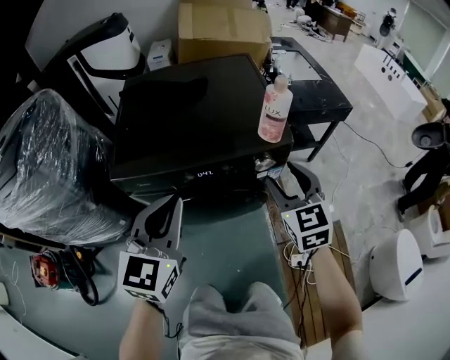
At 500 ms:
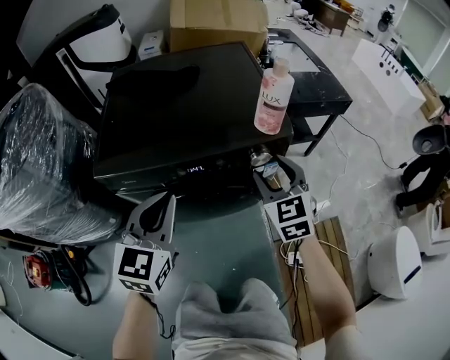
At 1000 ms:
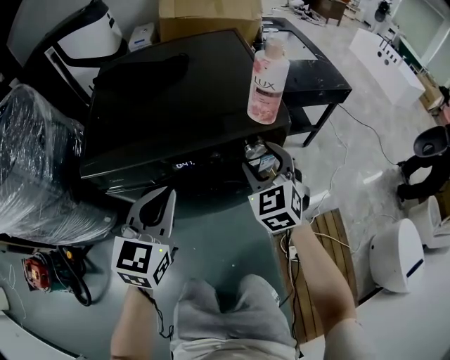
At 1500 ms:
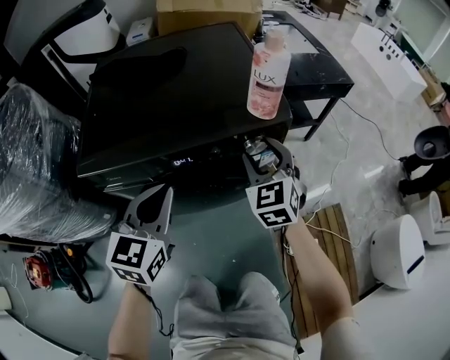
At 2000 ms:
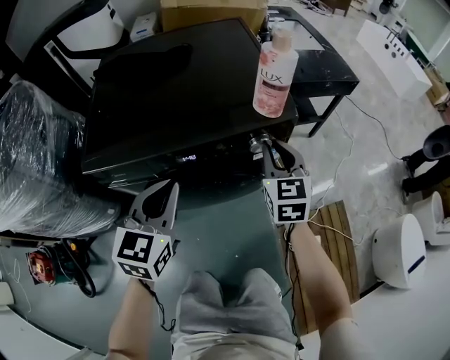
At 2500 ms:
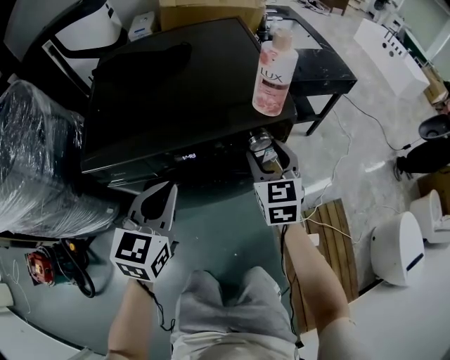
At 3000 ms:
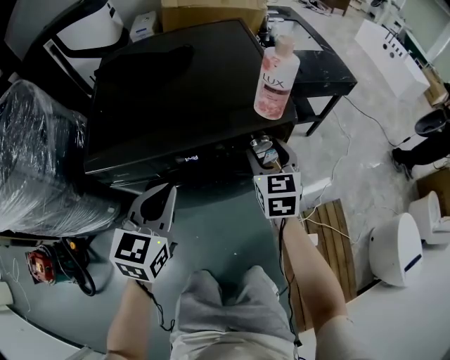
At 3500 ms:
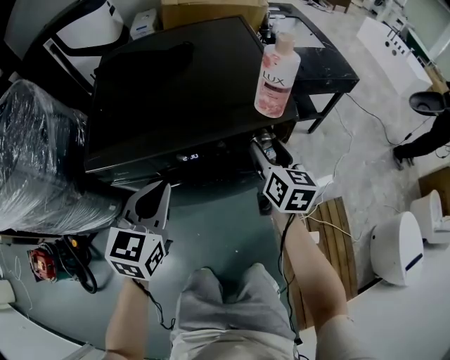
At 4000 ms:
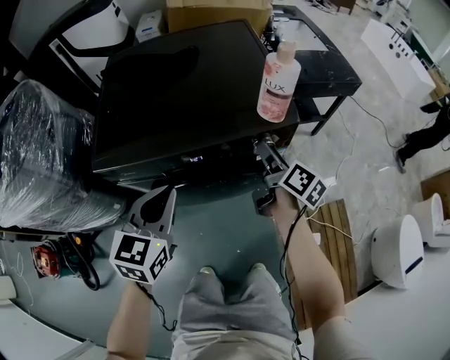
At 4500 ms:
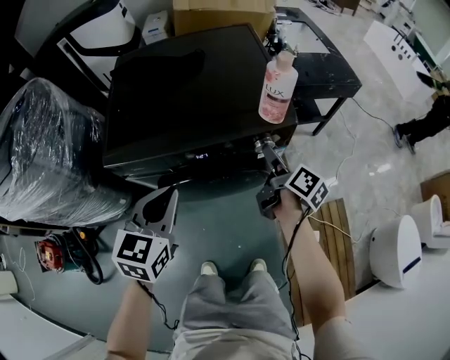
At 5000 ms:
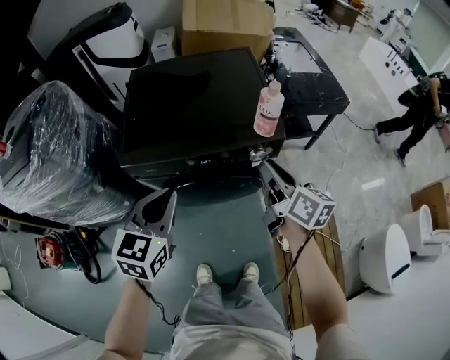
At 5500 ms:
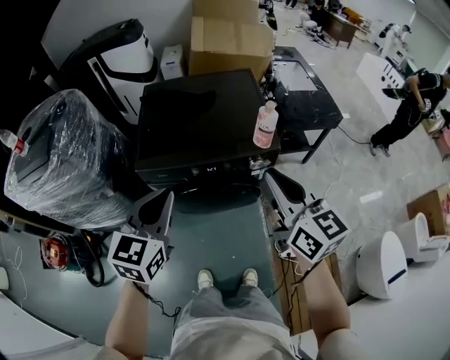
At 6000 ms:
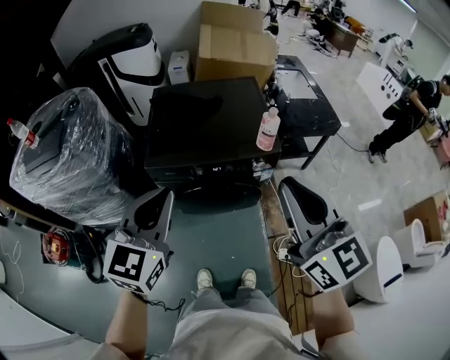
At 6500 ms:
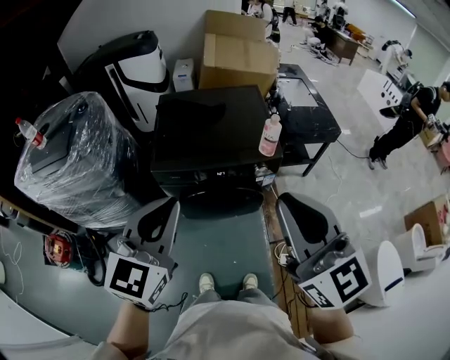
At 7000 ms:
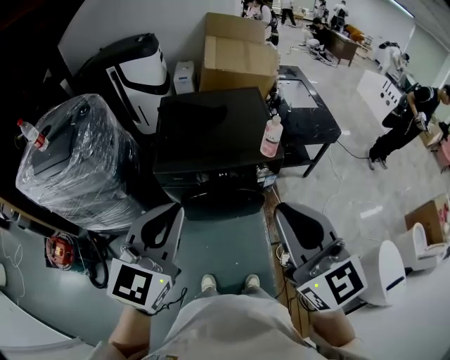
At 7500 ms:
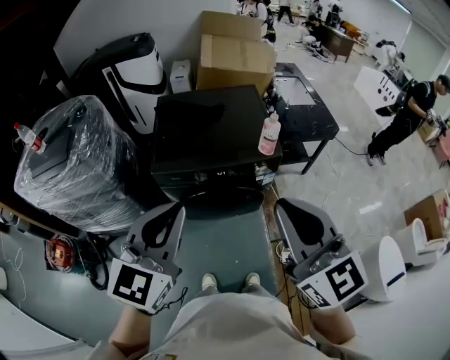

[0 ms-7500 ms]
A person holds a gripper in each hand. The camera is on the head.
0 ms to 2000 ms: The two grippers go roughly 15 cm downward and forward. The right gripper closes its fingers.
2000 ms to 4000 ms: The right gripper rotates around the line of its fingers by roughly 70 degrees, clockwise from behind, and opens its fingers.
4000 ms to 5500 ms: The left gripper goes about 25 cm upward and backward; the right gripper heads upward and backward, covering roughly 40 cm, rotates around the line of its fingers by approximately 50 degrees, counterclockwise from behind, and closes up.
5500 ms to 7500 ms: The left gripper goes about 15 cm upward and backward; the right gripper heads backward, upward and to the left, covering approximately 20 cm.

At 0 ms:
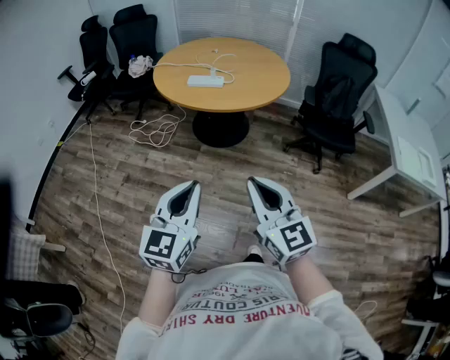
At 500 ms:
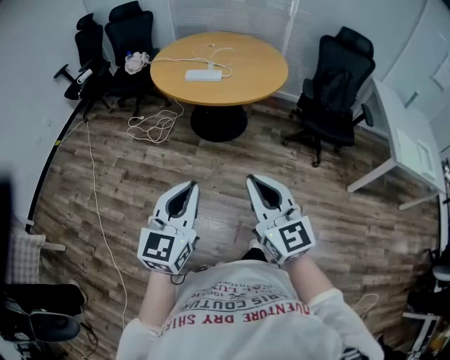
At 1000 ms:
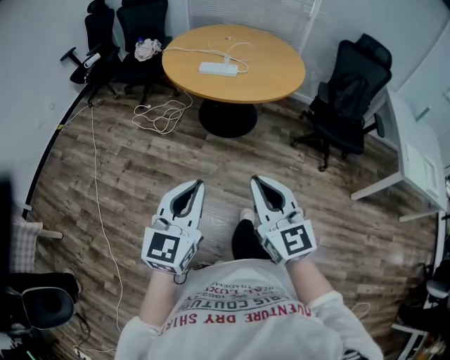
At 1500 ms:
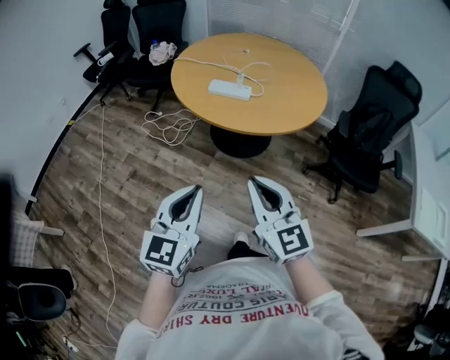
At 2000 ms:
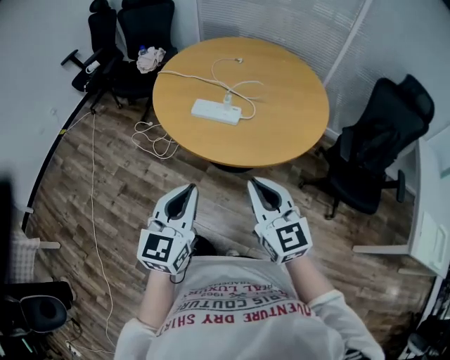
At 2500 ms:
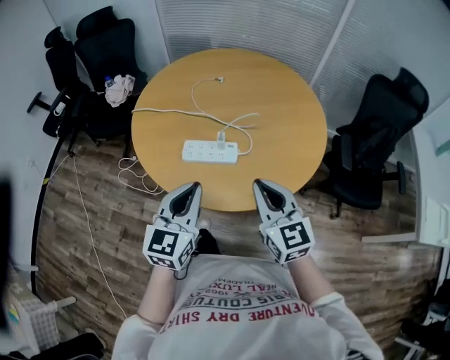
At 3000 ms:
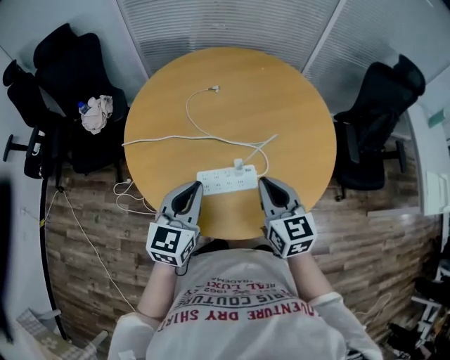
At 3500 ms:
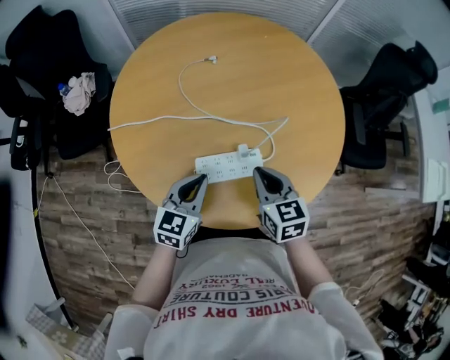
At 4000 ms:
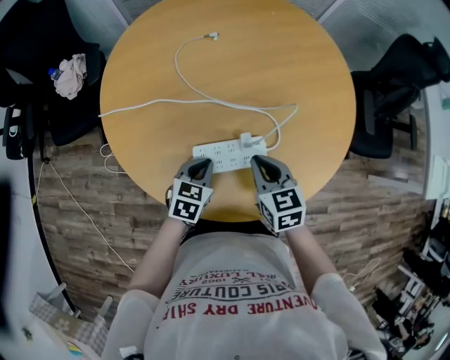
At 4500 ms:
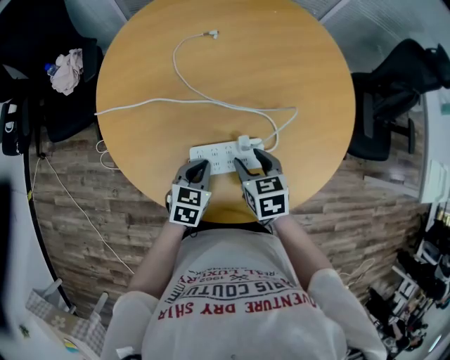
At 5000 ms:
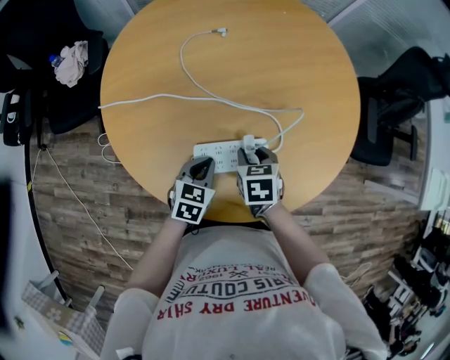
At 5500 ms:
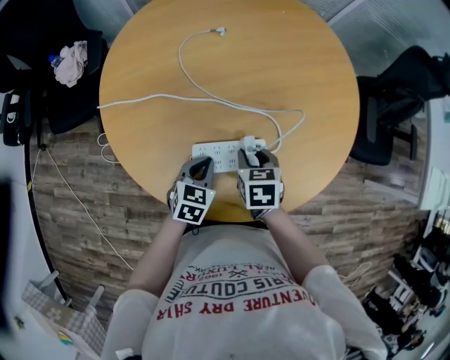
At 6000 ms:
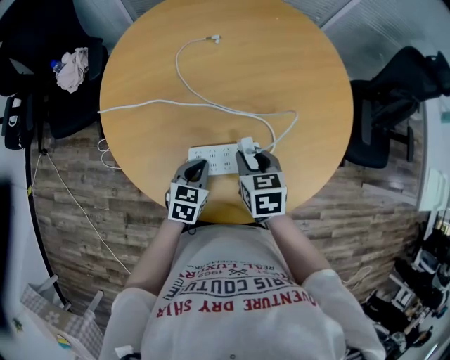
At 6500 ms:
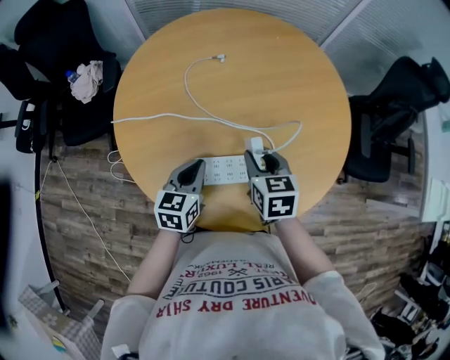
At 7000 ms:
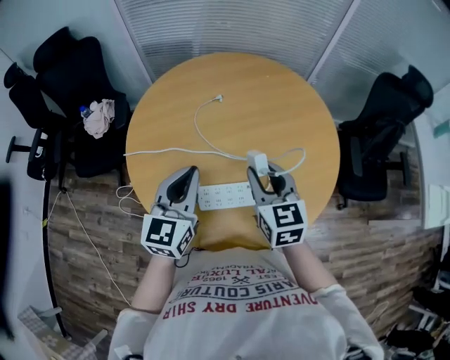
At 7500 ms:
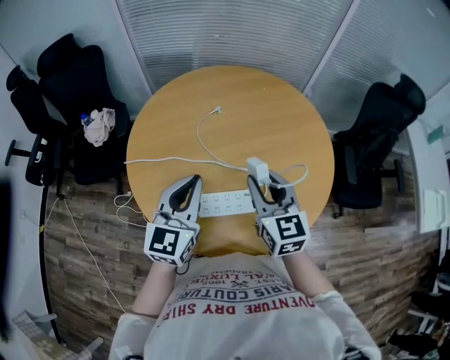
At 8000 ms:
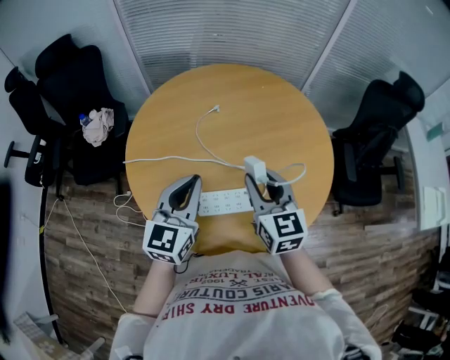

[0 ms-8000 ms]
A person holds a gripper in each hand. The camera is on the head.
0 ms to 2000 ms: The two grippers go some 40 cm forward.
2000 ms to 4000 ms: The left gripper ends up approximately 50 cm from where it was, and tips its fingers downward by about 40 degrees, while the right gripper shifts by approximately 40 cm, and tips its fingers downward by some 30 degrees.
4000 ms to 6000 ms: The right gripper opens its fingers.
6000 ms to 8000 ms: Both grippers travel together upward, some 25 cm. The left gripper tips its fingers upward by roughly 40 degrees. Meanwhile the right gripper points its fingers roughly 30 degrees further upward.

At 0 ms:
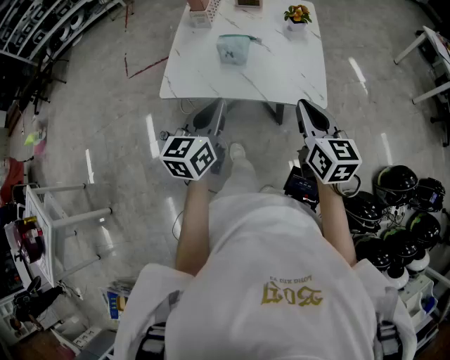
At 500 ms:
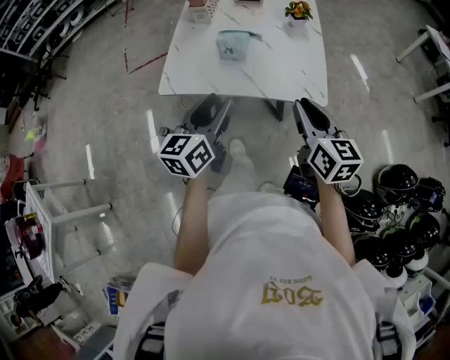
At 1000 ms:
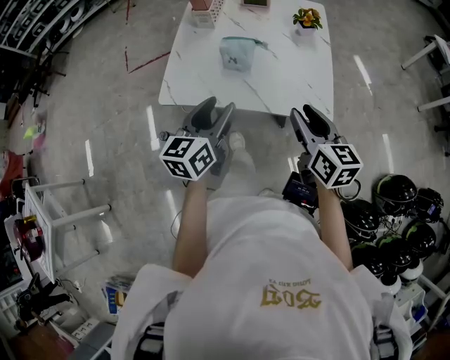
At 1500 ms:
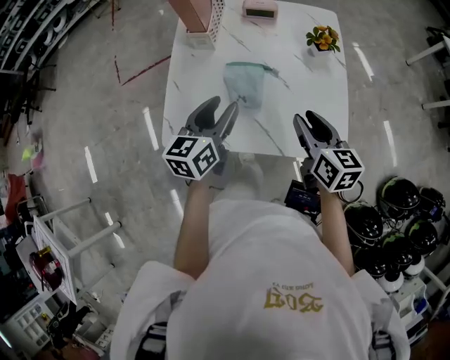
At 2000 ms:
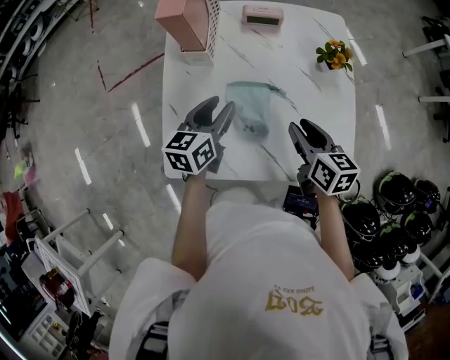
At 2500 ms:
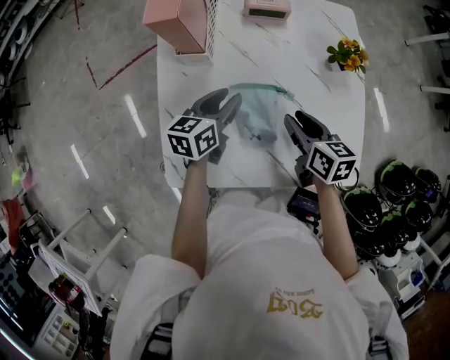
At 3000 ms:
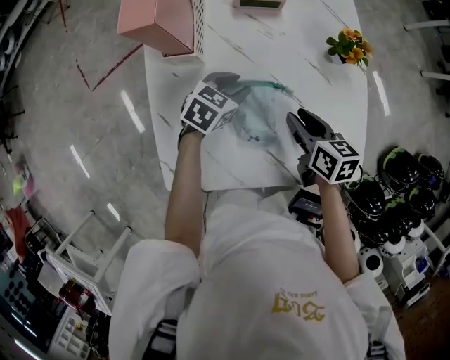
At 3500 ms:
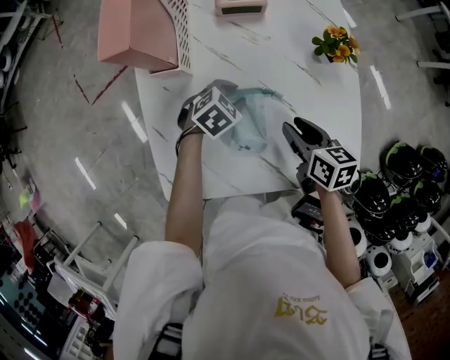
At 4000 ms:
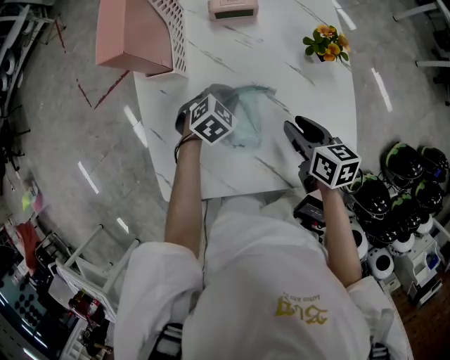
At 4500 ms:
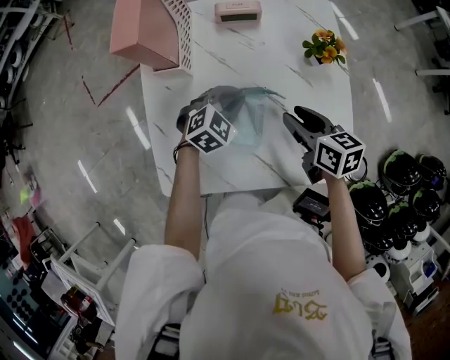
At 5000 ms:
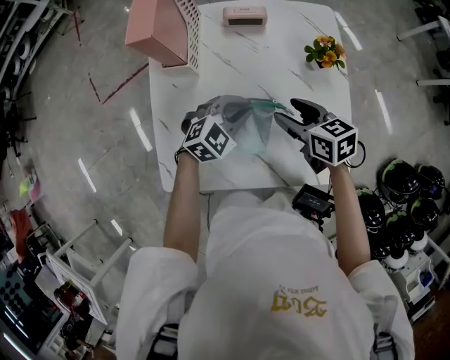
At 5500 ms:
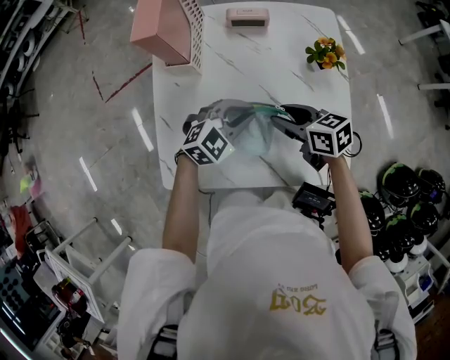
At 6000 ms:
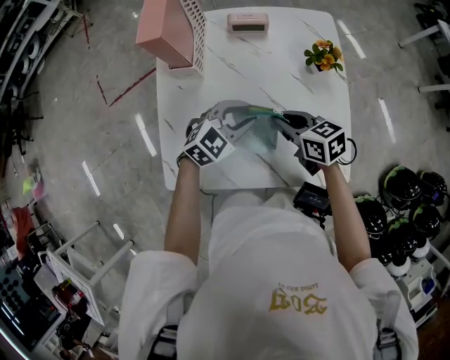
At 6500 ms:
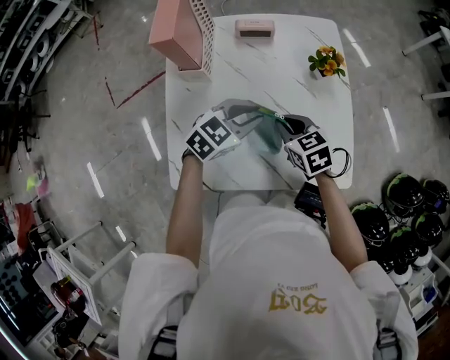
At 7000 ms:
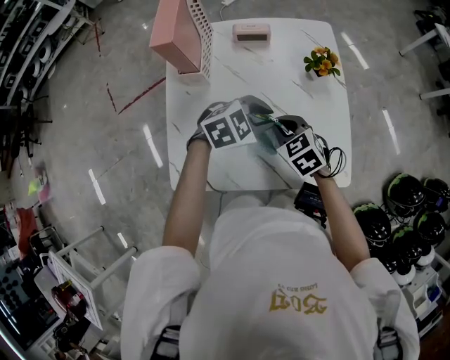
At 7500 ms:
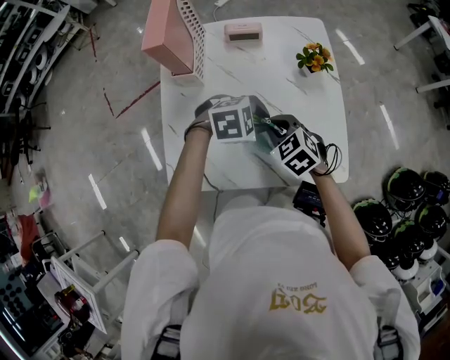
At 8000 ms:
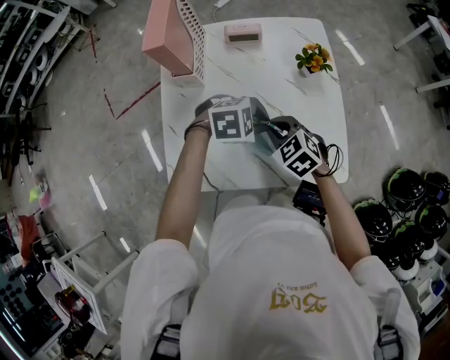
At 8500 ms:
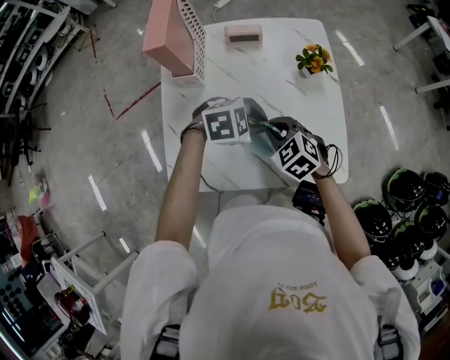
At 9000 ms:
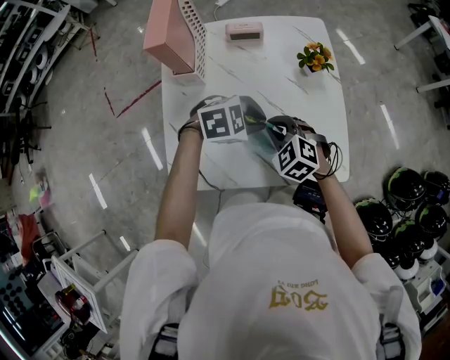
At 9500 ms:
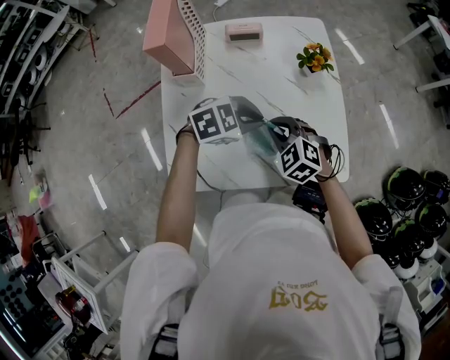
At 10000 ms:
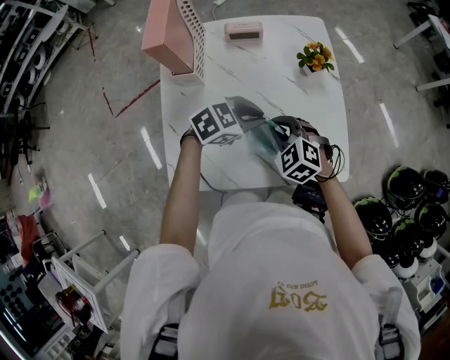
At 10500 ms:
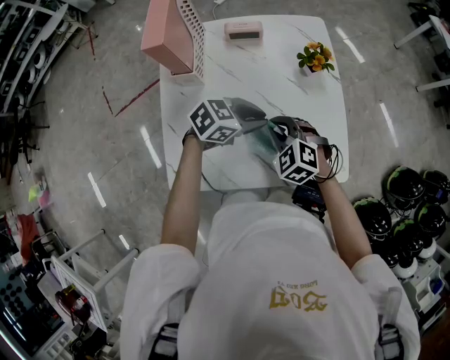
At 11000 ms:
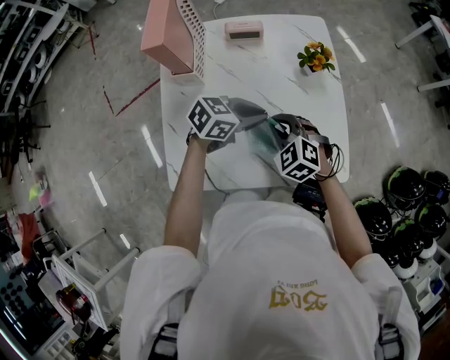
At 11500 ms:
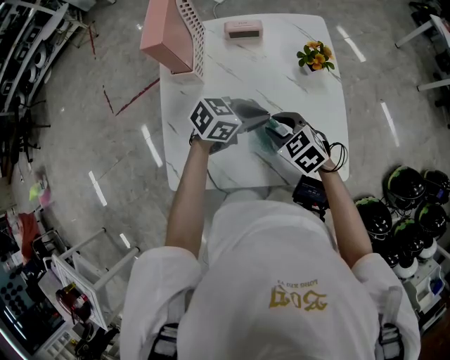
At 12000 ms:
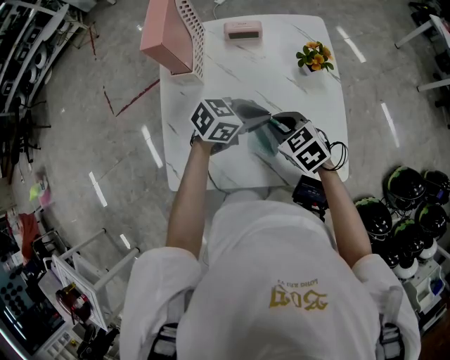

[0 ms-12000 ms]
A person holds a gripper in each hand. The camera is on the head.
0 ms to 2000 ms: The right gripper goes approximately 30 cm forward and downward, rotates approximately 20 degrees, and opens its fingers; the left gripper shifts some 35 cm forward, and opens its fingers.
2000 ms to 4000 ms: The left gripper is displaced downward, forward and to the right by roughly 20 cm, tips its fingers downward by approximately 30 degrees, and closes up; the right gripper shifts some 5 cm downward.
4000 ms to 6000 ms: The left gripper goes approximately 15 cm upward and backward, and swivels about 20 degrees, while the right gripper is displaced to the left by roughly 5 cm, rotates approximately 30 degrees, and closes.
6000 ms to 8000 ms: The left gripper moves about 5 cm, and changes its angle by some 40 degrees; the right gripper swivels approximately 40 degrees.
8000 ms to 10000 ms: The left gripper rotates about 20 degrees.
10000 ms to 12000 ms: The right gripper swivels about 20 degrees, and opens and closes again. The left gripper rotates about 20 degrees.
